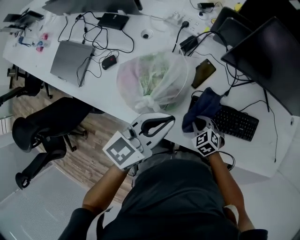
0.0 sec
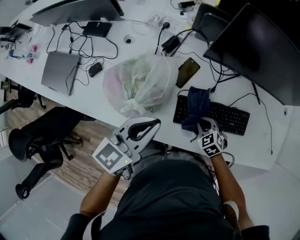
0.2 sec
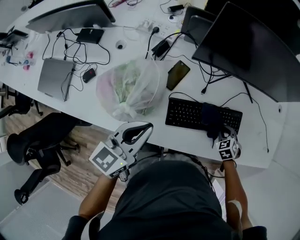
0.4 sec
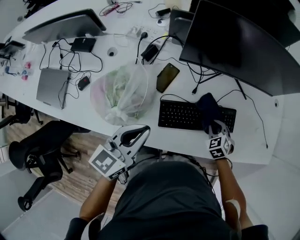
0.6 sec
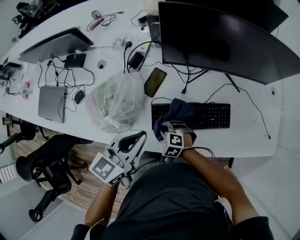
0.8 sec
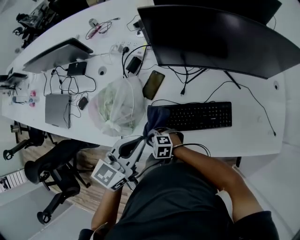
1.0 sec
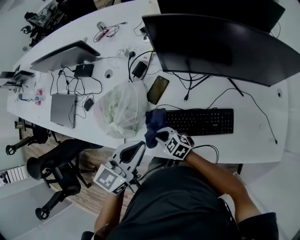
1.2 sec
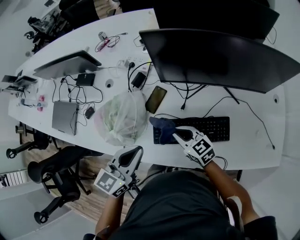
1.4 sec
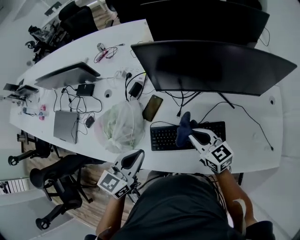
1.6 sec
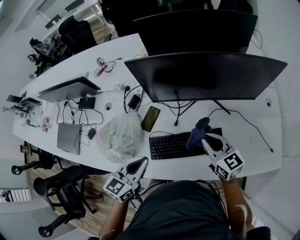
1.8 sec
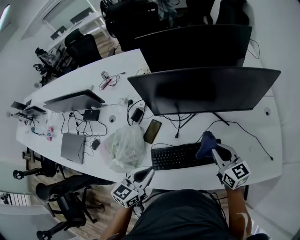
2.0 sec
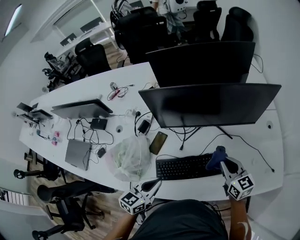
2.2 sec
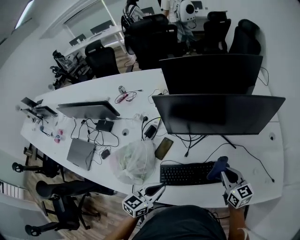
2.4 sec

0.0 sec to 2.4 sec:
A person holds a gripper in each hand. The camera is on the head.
0.0 sec to 1.2 sec: The left gripper moves some 10 cm. The right gripper goes some 5 cm upward, and swivels some 30 degrees.
1.2 sec to 2.4 sec: The left gripper changes place by some 10 cm; the right gripper moves about 40 cm, and changes its angle by about 50 degrees.

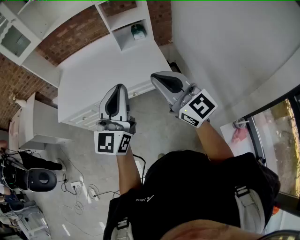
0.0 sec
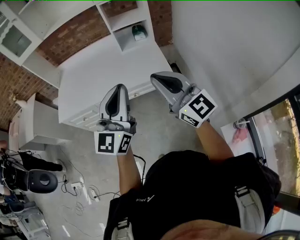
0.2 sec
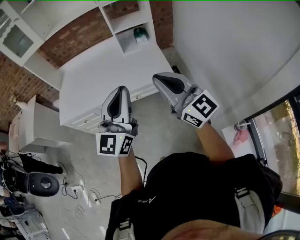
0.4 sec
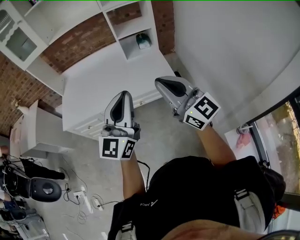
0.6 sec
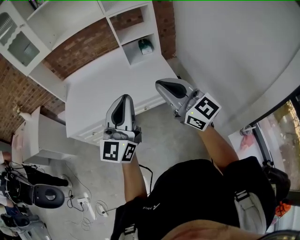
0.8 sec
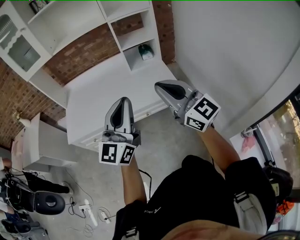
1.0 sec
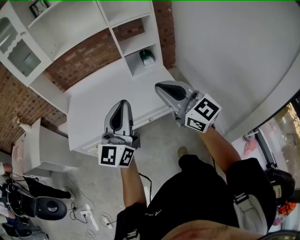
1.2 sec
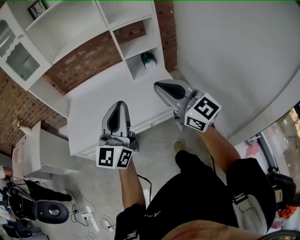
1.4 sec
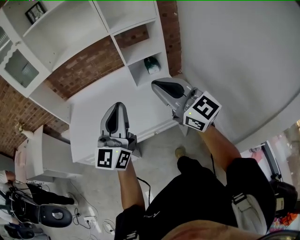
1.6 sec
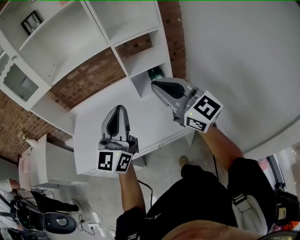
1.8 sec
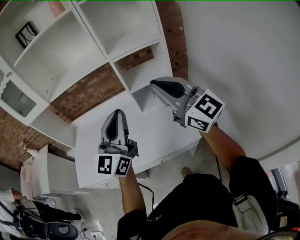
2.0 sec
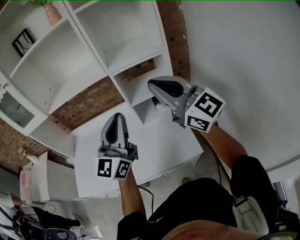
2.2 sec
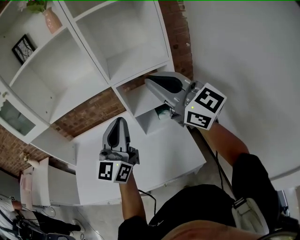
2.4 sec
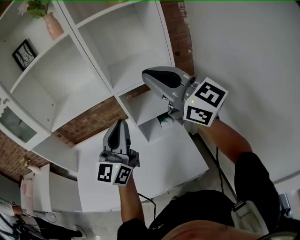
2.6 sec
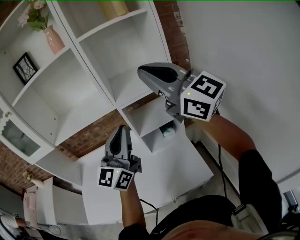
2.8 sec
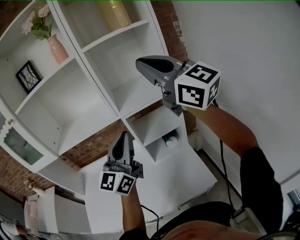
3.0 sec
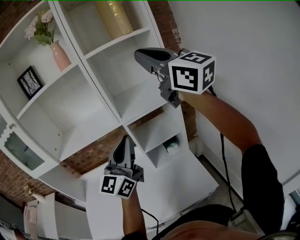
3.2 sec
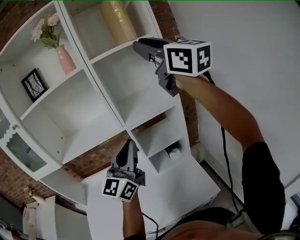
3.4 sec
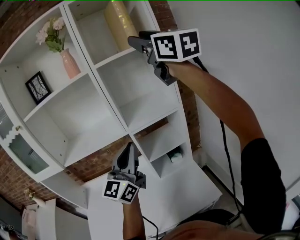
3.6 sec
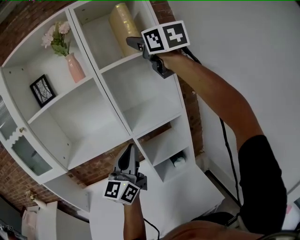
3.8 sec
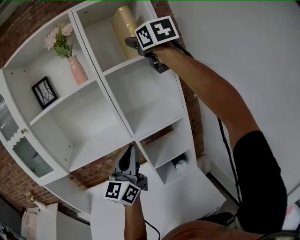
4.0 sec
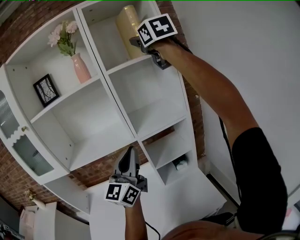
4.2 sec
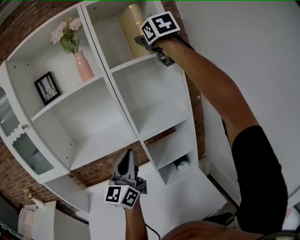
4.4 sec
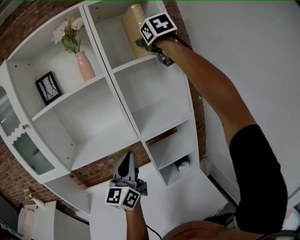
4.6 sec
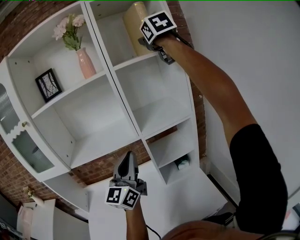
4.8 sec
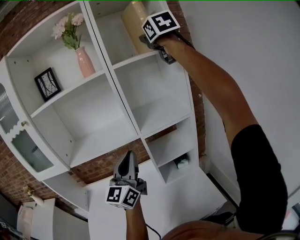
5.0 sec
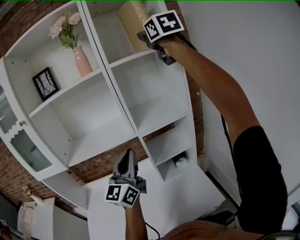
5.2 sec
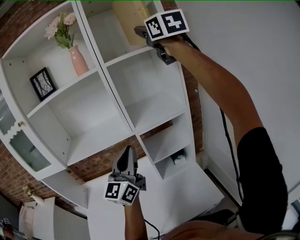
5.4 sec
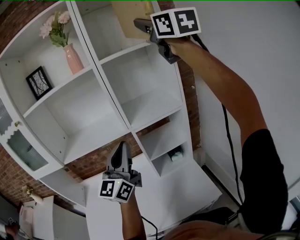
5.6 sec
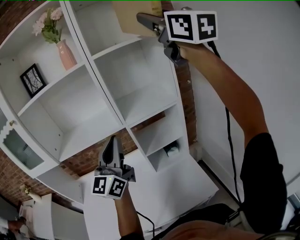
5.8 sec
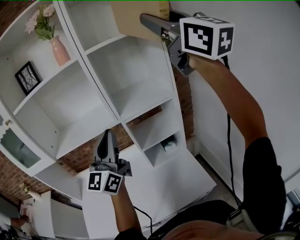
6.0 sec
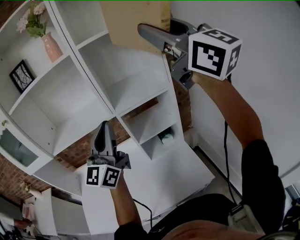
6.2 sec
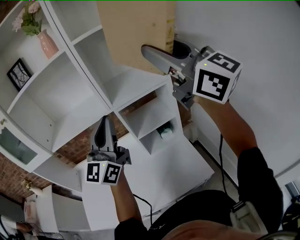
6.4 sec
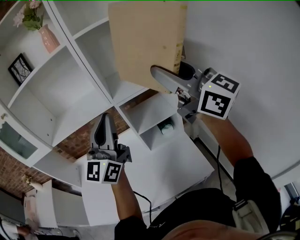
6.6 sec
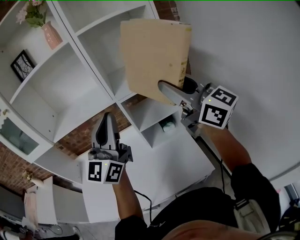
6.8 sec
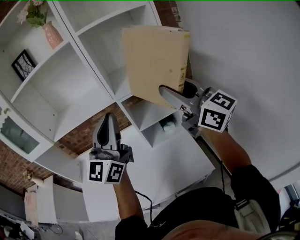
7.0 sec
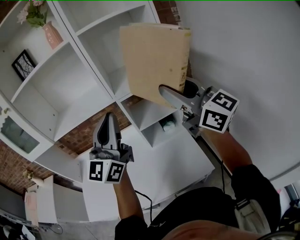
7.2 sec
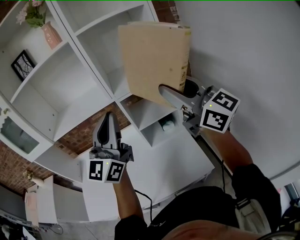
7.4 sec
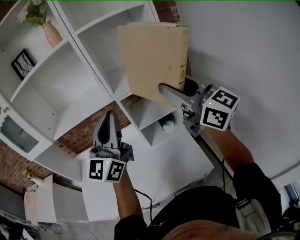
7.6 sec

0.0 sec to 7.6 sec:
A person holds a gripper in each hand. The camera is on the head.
0.0 sec to 1.6 sec: The two grippers go roughly 20 cm forward and to the left.
1.6 sec to 3.0 sec: The right gripper heads forward and upward, covering some 40 cm, while the left gripper moves forward, about 30 cm.
3.0 sec to 4.6 sec: The left gripper moves to the left, approximately 5 cm, while the right gripper shifts some 25 cm forward and upward, changes its angle by about 40 degrees, and opens.
4.6 sec to 6.0 sec: The right gripper heads backward and to the right, covering approximately 20 cm, and rotates some 30 degrees.
6.0 sec to 7.6 sec: The left gripper changes place by approximately 5 cm; the right gripper shifts about 25 cm downward, and changes its angle by roughly 20 degrees.

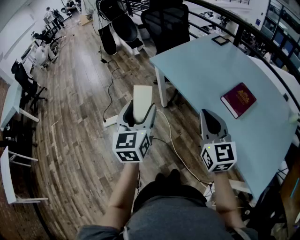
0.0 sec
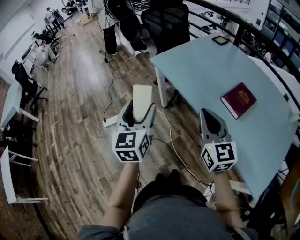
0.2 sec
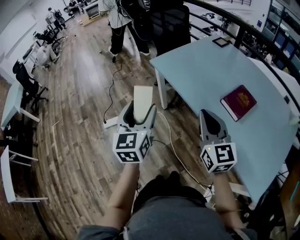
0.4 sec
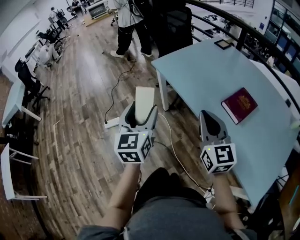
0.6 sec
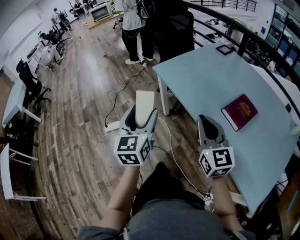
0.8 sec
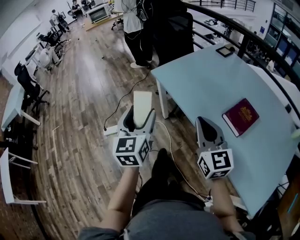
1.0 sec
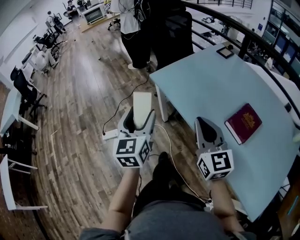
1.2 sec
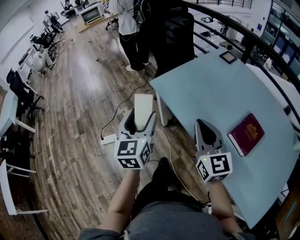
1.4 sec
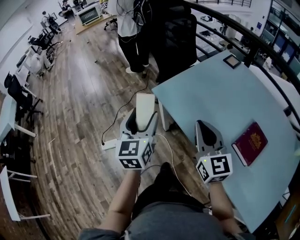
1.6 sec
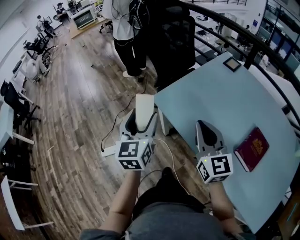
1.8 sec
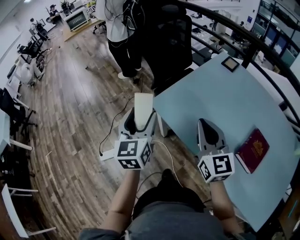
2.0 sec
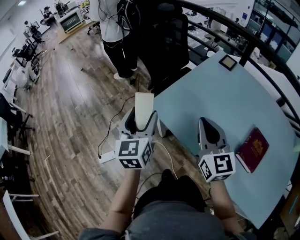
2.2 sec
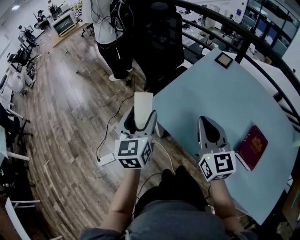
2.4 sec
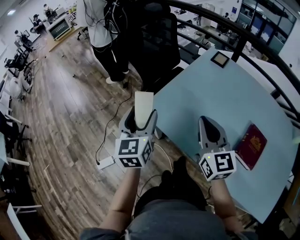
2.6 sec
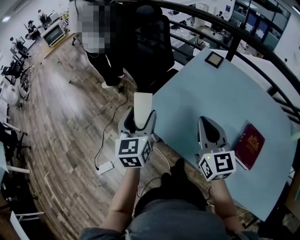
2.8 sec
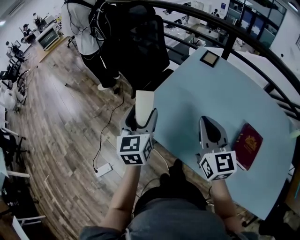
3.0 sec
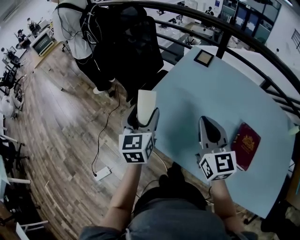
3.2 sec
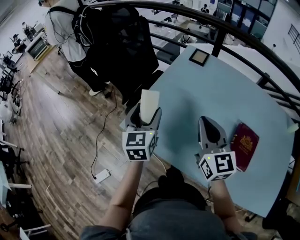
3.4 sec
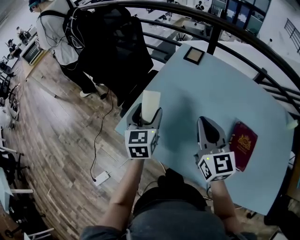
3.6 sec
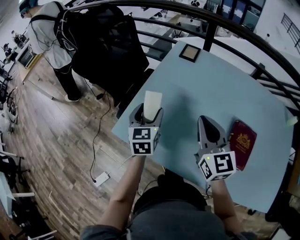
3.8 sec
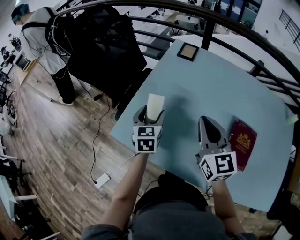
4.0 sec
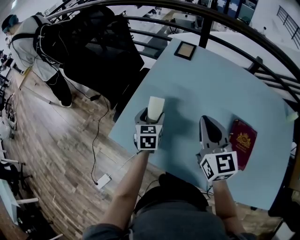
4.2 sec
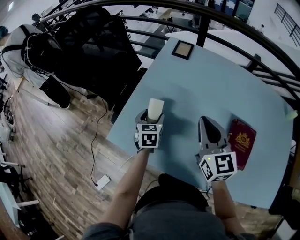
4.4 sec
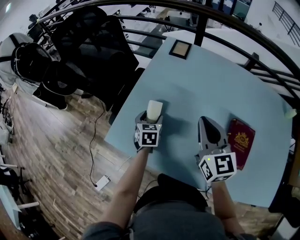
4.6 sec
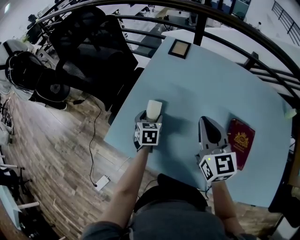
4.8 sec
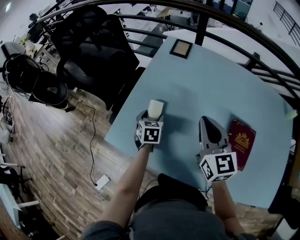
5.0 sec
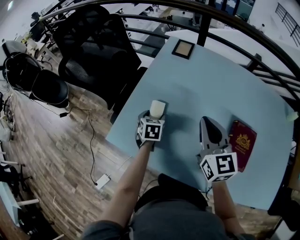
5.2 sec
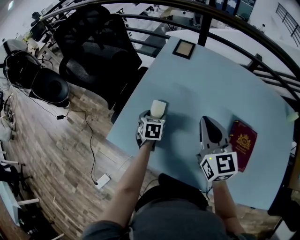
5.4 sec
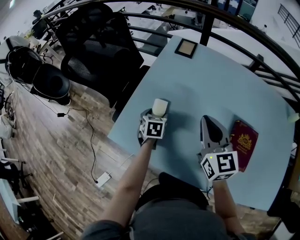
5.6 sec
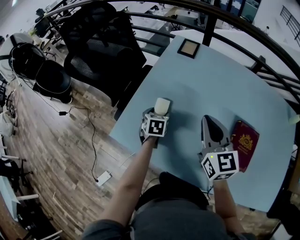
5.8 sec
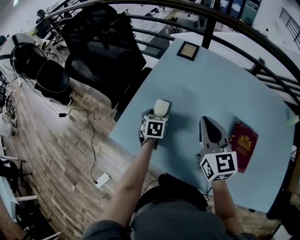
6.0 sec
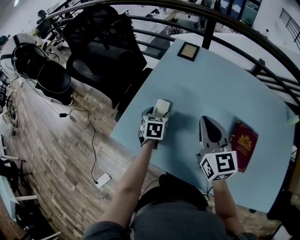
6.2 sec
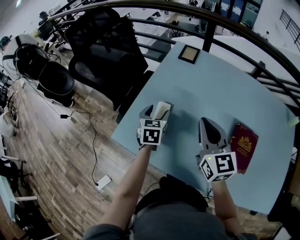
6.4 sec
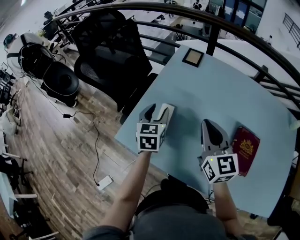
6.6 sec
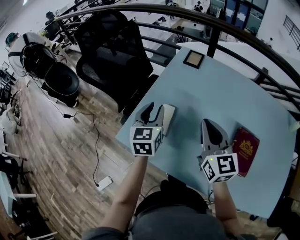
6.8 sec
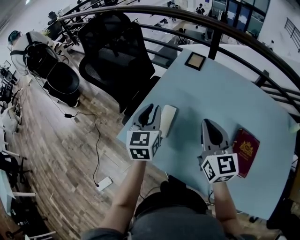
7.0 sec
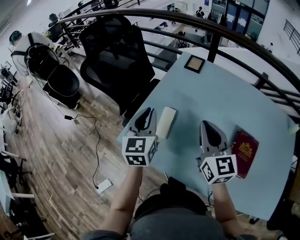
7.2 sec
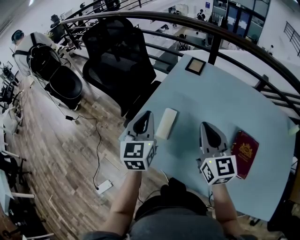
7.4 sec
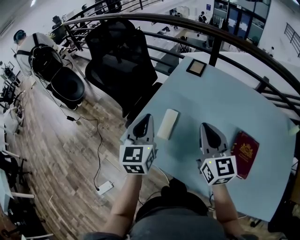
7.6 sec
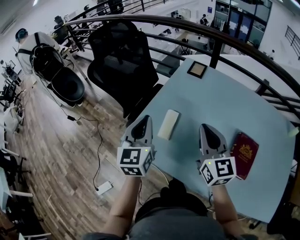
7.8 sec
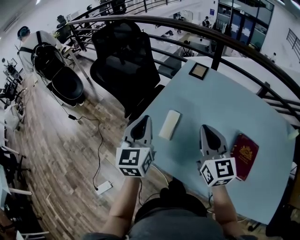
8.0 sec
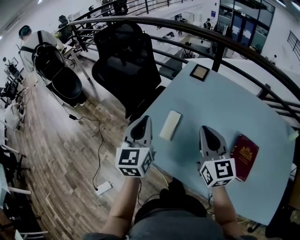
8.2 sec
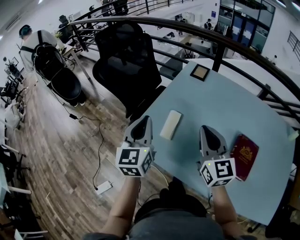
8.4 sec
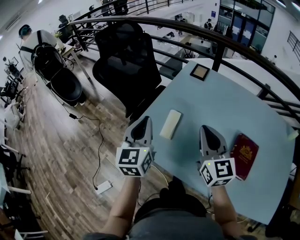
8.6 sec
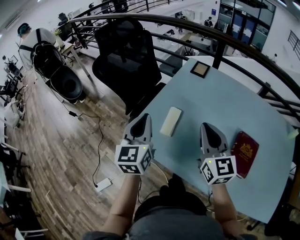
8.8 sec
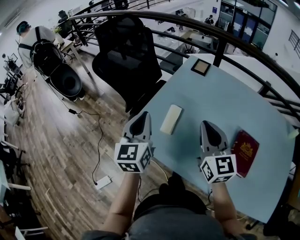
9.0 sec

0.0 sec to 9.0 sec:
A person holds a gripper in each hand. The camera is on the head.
0.0 sec to 1.6 sec: The two grippers go roughly 25 cm forward.
1.6 sec to 3.0 sec: The right gripper shifts roughly 15 cm forward and to the right, while the left gripper is displaced forward by some 20 cm.
3.0 sec to 4.4 sec: The left gripper moves downward, to the right and forward, about 25 cm, and swivels roughly 30 degrees. The right gripper moves to the right and forward, roughly 10 cm.
4.4 sec to 6.0 sec: The grippers make only small movements.
6.0 sec to 7.6 sec: The left gripper goes about 25 cm upward, points its fingers roughly 40 degrees further upward, and closes its fingers. The right gripper moves about 5 cm.
7.6 sec to 9.0 sec: There are only small adjustments of the grippers.

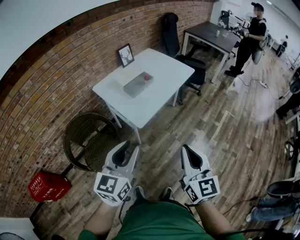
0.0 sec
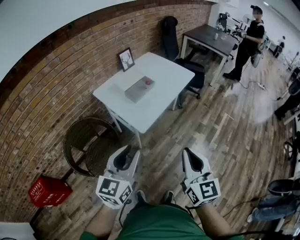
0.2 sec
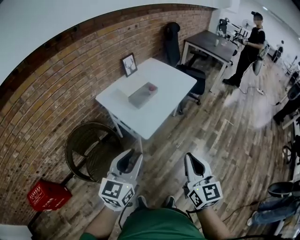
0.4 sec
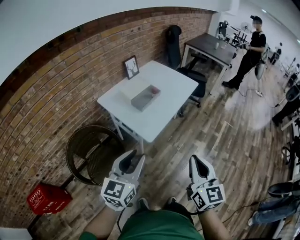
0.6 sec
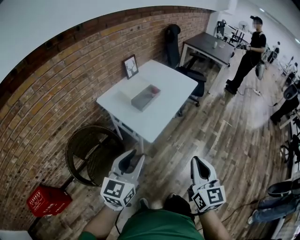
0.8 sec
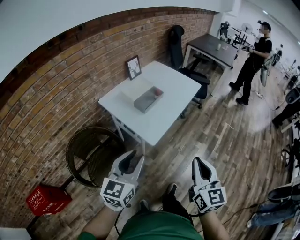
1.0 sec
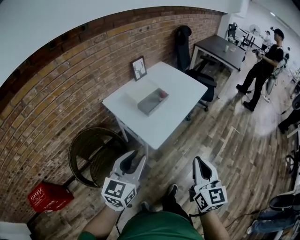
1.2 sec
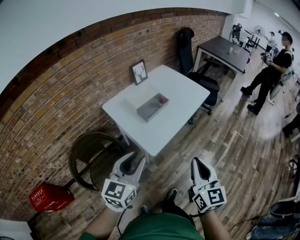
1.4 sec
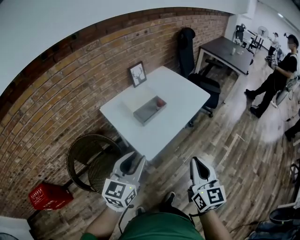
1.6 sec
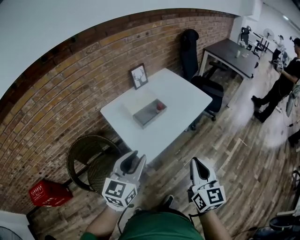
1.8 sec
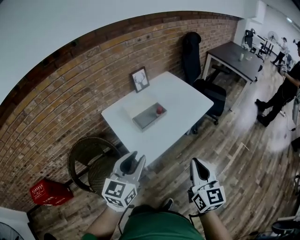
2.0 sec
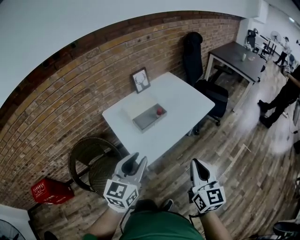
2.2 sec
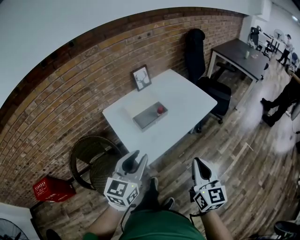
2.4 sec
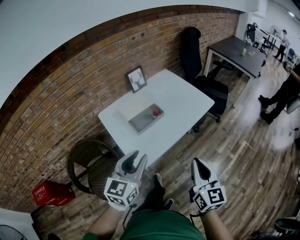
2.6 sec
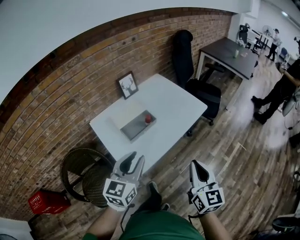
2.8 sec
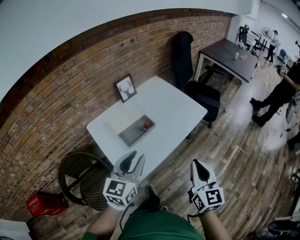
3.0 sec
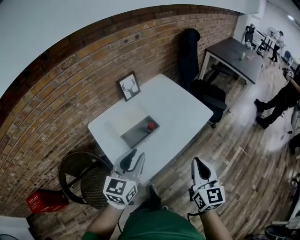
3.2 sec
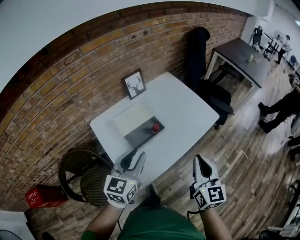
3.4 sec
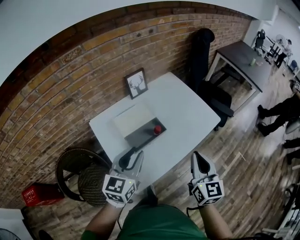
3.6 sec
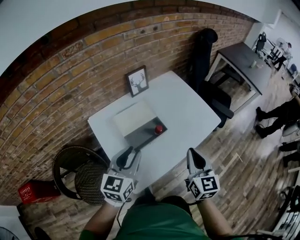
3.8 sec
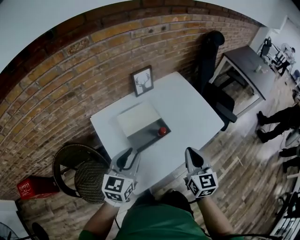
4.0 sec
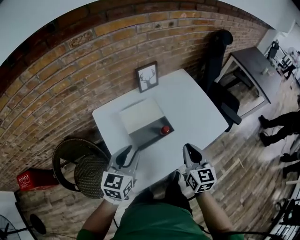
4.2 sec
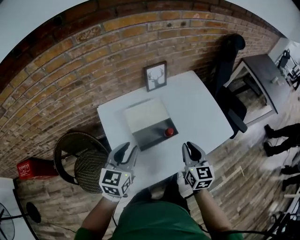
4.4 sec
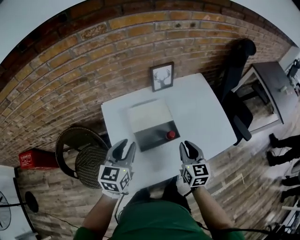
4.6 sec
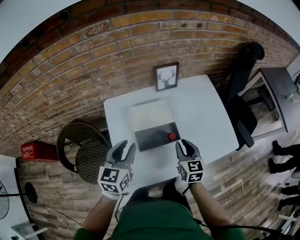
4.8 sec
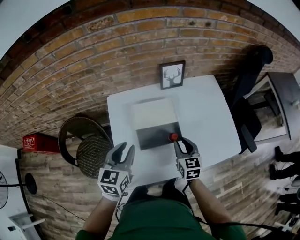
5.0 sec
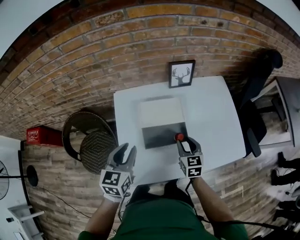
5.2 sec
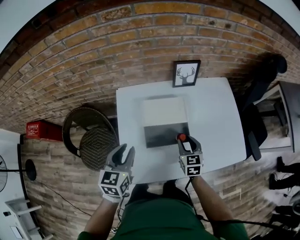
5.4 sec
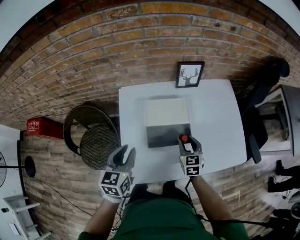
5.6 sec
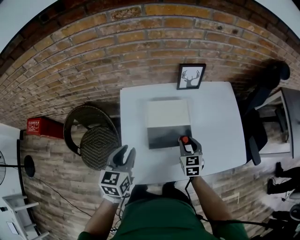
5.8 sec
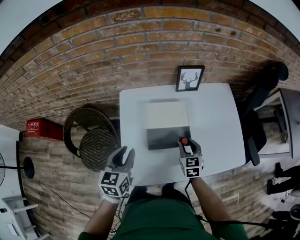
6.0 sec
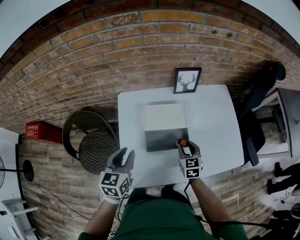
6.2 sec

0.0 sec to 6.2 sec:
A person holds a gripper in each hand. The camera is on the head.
0.0 sec to 1.6 sec: The two grippers go about 15 cm forward.
1.6 sec to 3.2 sec: The two grippers go some 25 cm forward.
3.2 sec to 4.6 sec: The right gripper heads forward, downward and to the left, covering about 30 cm, and rotates approximately 30 degrees. Meanwhile the left gripper moves to the left, forward and downward, about 20 cm, and changes its angle by approximately 30 degrees.
4.6 sec to 6.2 sec: The right gripper moves downward and forward, approximately 10 cm, and changes its angle by about 20 degrees. Meanwhile the left gripper shifts by some 5 cm.
